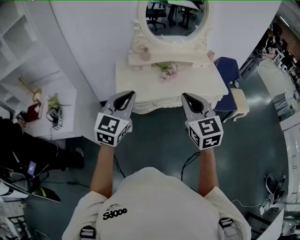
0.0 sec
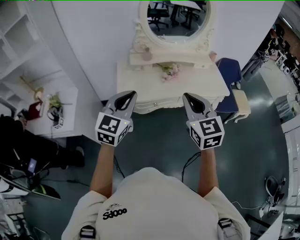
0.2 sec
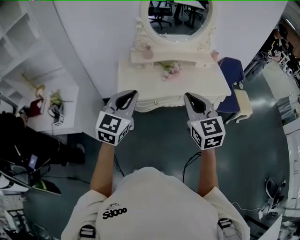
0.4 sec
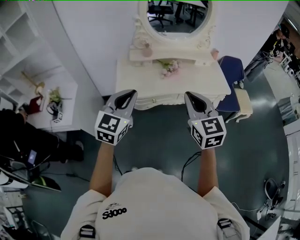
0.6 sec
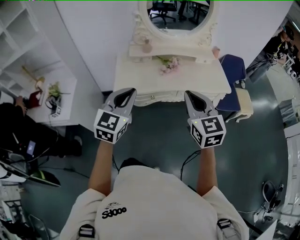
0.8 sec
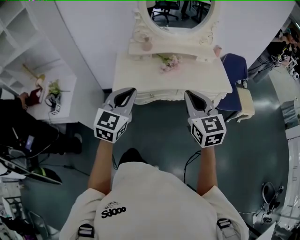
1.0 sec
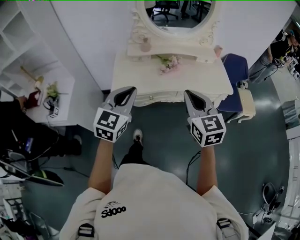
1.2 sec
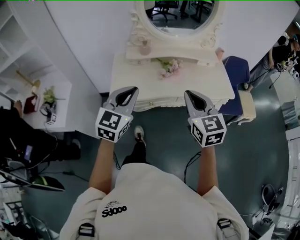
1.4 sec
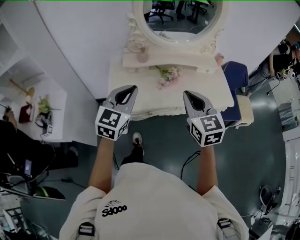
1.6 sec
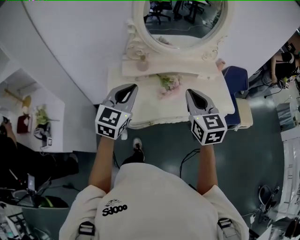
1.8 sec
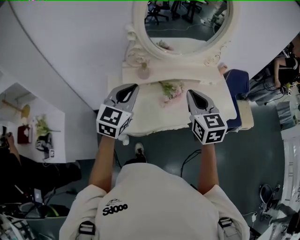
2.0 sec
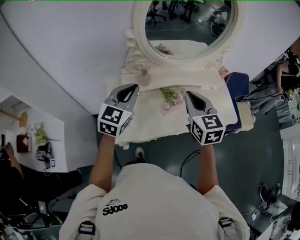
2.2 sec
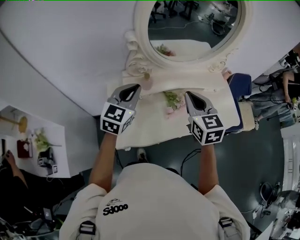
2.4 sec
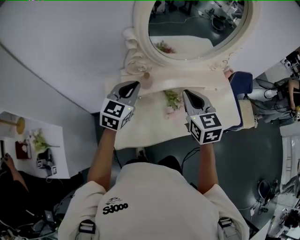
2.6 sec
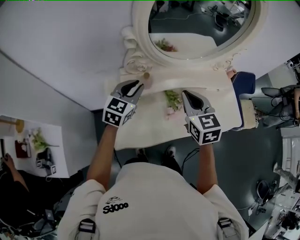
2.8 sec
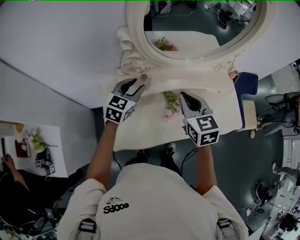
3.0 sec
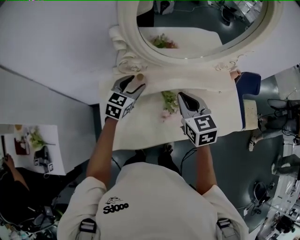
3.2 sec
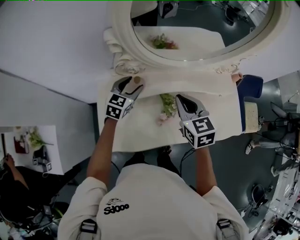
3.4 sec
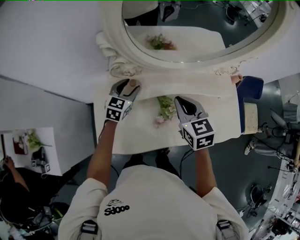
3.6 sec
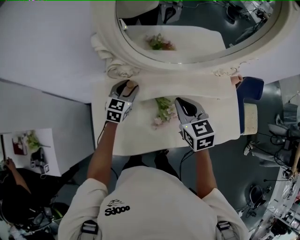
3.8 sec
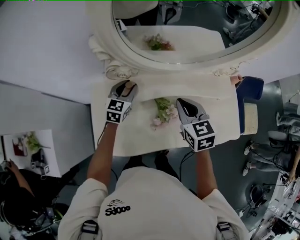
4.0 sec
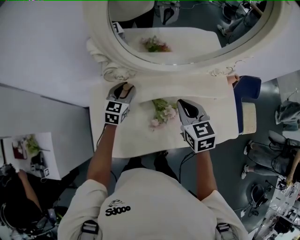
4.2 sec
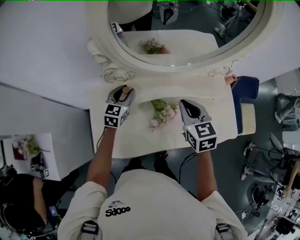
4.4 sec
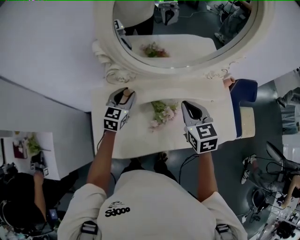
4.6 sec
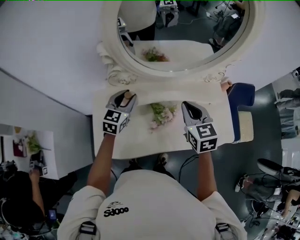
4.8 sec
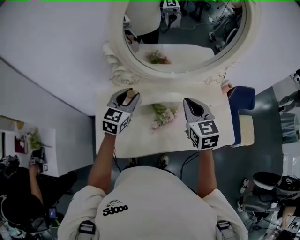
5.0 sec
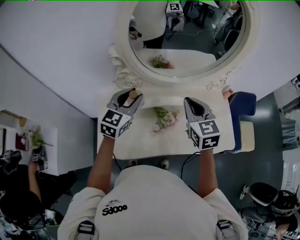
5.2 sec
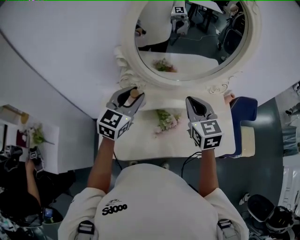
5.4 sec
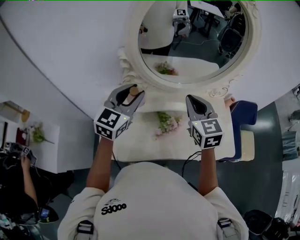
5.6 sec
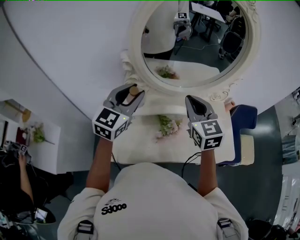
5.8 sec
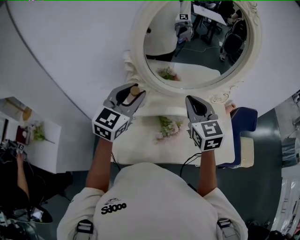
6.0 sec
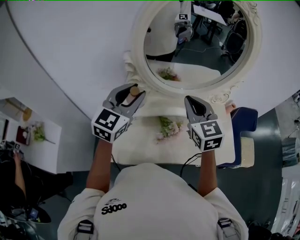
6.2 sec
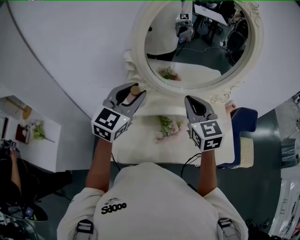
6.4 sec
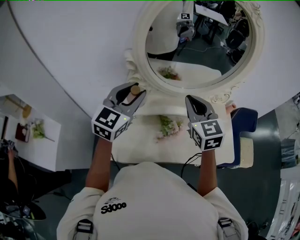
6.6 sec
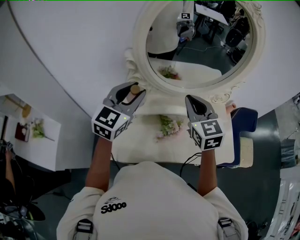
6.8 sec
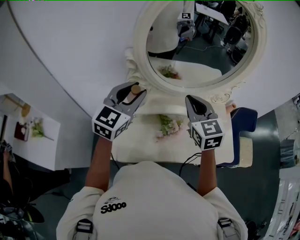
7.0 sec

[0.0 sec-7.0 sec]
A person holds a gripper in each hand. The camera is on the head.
0.0 sec to 1.4 sec: Both grippers travel together forward and to the right, some 10 cm.
1.4 sec to 2.8 sec: The grippers both shift forward by some 35 cm.
2.8 sec to 4.2 sec: The left gripper travels downward and forward by roughly 15 cm, and opens, then closes once more, while the right gripper is displaced to the right, forward and downward by about 15 cm.
4.2 sec to 5.6 sec: The left gripper moves upward and backward, approximately 25 cm, and swivels some 20 degrees, while the right gripper moves upward, some 15 cm.
5.6 sec to 7.0 sec: The grippers move only a little.

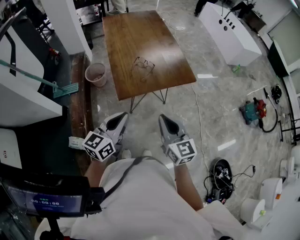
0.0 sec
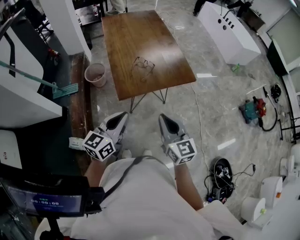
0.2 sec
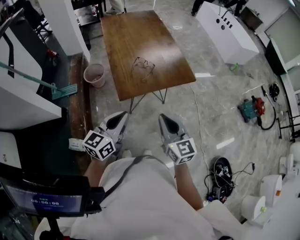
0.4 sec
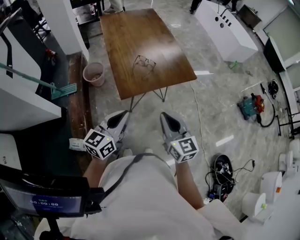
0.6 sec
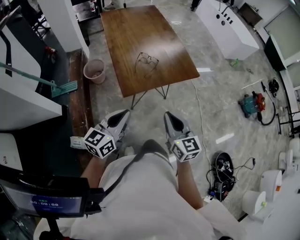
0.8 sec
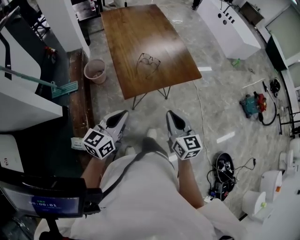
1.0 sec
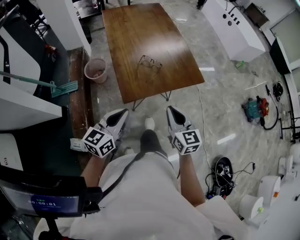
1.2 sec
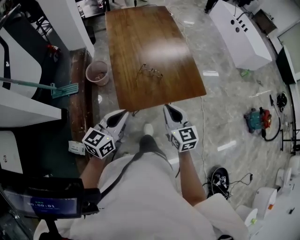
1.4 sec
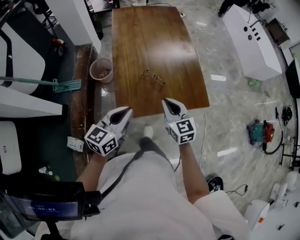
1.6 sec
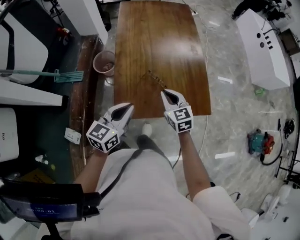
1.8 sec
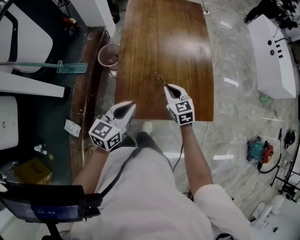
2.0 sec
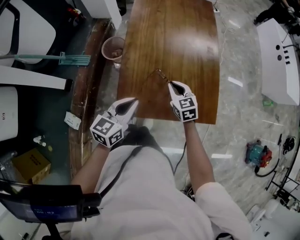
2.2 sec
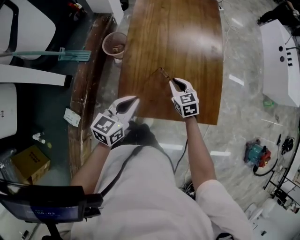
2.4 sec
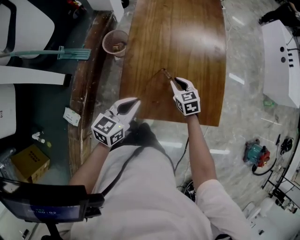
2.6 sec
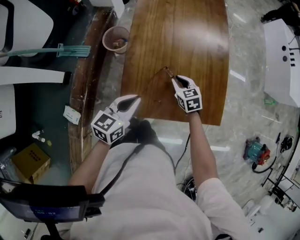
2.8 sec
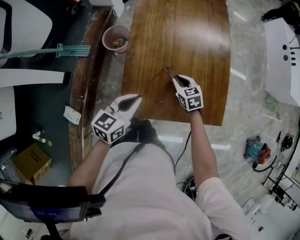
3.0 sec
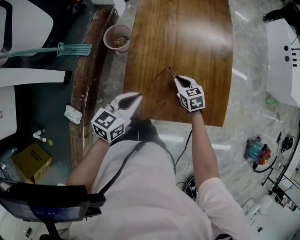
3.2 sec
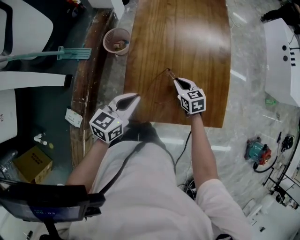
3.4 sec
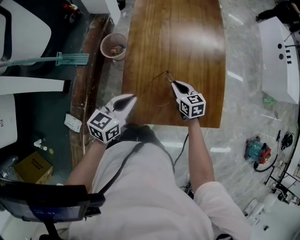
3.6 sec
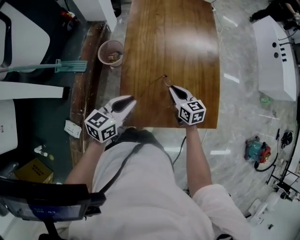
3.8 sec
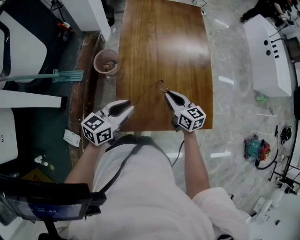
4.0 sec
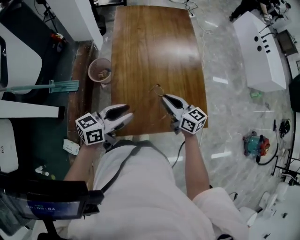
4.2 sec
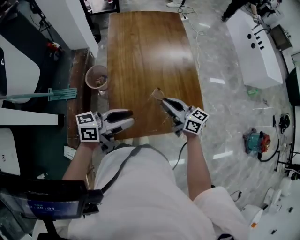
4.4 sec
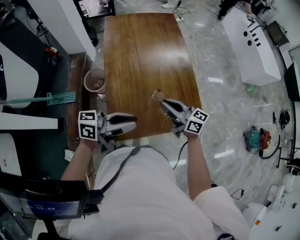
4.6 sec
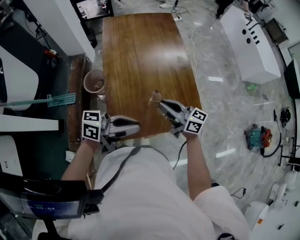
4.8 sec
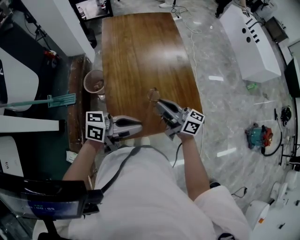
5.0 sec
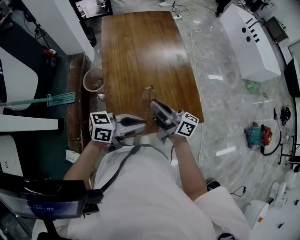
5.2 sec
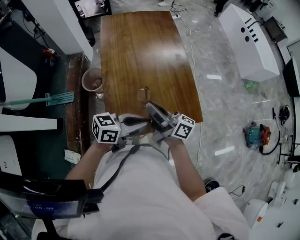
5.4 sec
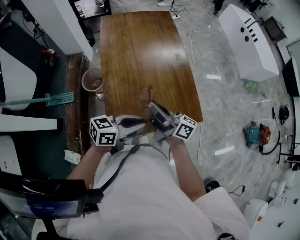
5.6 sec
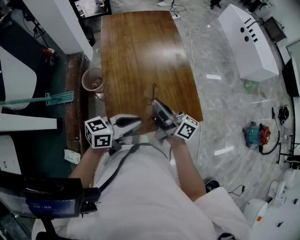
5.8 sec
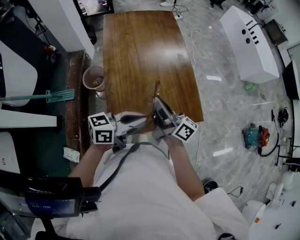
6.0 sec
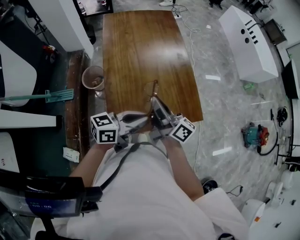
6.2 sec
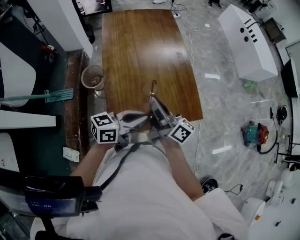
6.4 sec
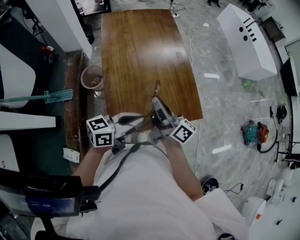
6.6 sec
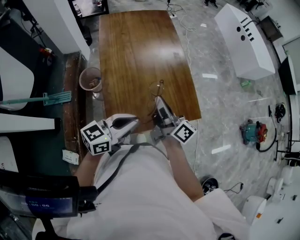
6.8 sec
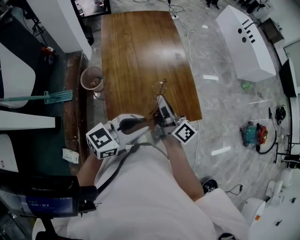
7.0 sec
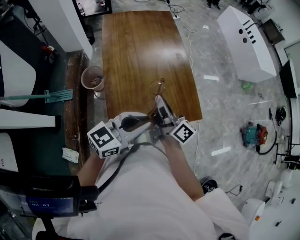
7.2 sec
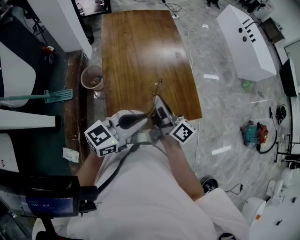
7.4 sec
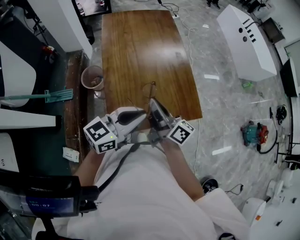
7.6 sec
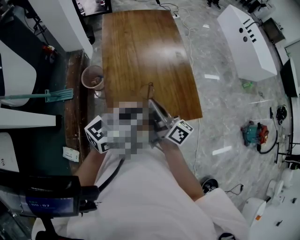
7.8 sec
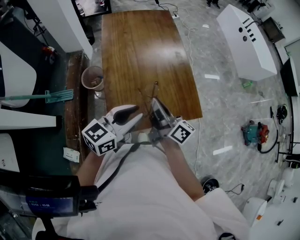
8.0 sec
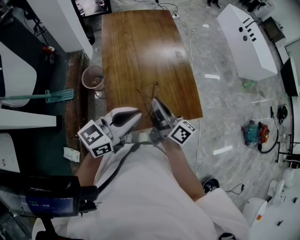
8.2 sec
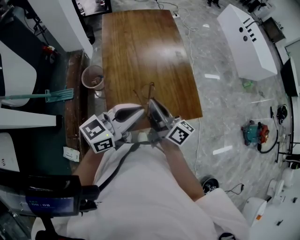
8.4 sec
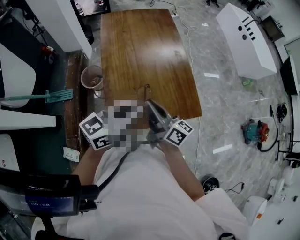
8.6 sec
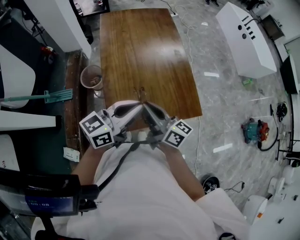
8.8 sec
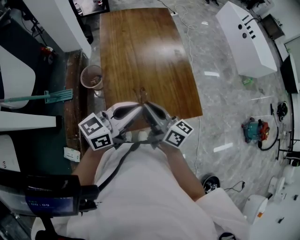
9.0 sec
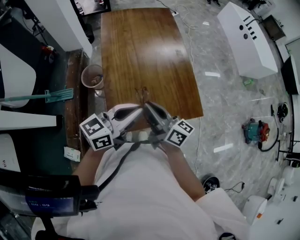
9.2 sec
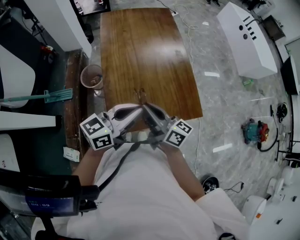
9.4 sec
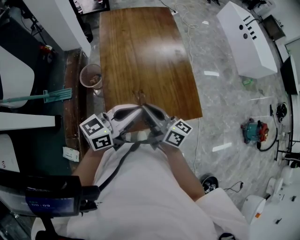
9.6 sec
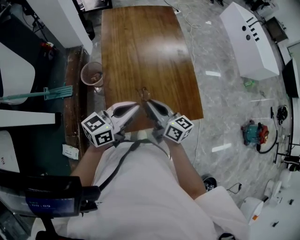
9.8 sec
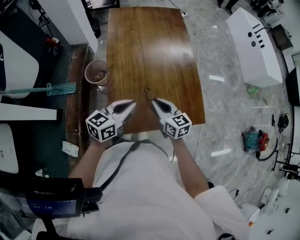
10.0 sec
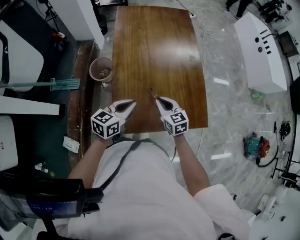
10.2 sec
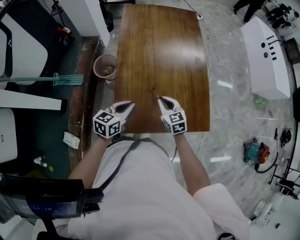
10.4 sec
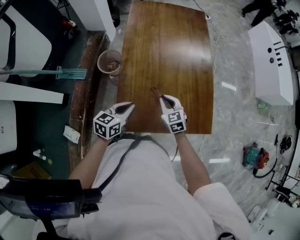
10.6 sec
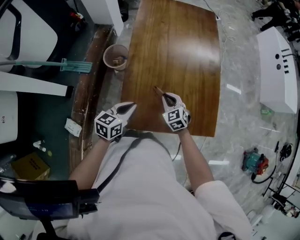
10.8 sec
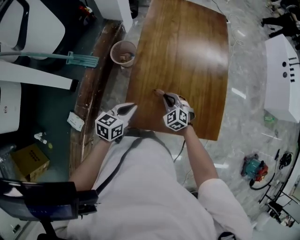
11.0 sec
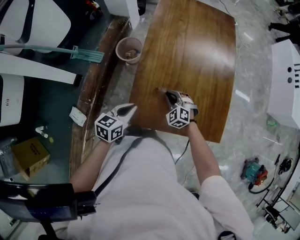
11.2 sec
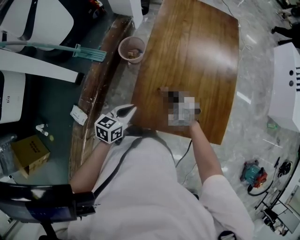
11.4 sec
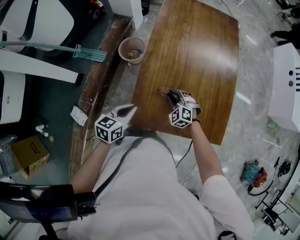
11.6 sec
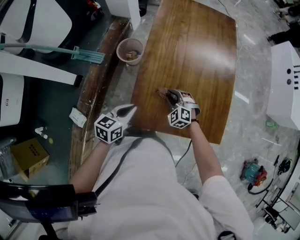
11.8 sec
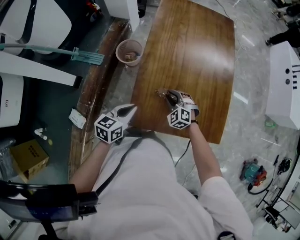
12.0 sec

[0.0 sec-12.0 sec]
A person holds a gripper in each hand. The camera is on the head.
0.0 sec to 1.6 sec: The grippers both shift forward by about 25 cm.
1.6 sec to 3.0 sec: The left gripper shifts approximately 15 cm forward and downward. The right gripper goes about 30 cm forward and downward, and rotates some 30 degrees.
3.0 sec to 4.4 sec: The right gripper travels upward by approximately 20 cm, and angles its fingers upward, by about 40 degrees; the left gripper shifts about 15 cm upward, changes its angle by about 40 degrees, and opens up.
4.4 sec to 6.0 sec: The left gripper shifts by roughly 5 cm, and closes up, while the right gripper travels upward by some 5 cm, and rotates about 30 degrees.
6.0 sec to 7.6 sec: The left gripper rotates some 20 degrees.
7.6 sec to 9.0 sec: The left gripper opens, then closes once more.
9.0 sec to 10.4 sec: The right gripper moves downward and forward, about 20 cm, and tilts its fingers some 40 degrees downward; the left gripper moves downward and to the left, some 20 cm, and rotates approximately 30 degrees.
10.4 sec to 12.0 sec: The right gripper is displaced downward and to the left by about 10 cm, and twists roughly 50 degrees counterclockwise, seen from behind, while the left gripper moves to the left, roughly 5 cm.

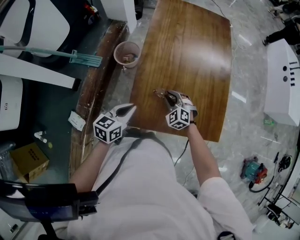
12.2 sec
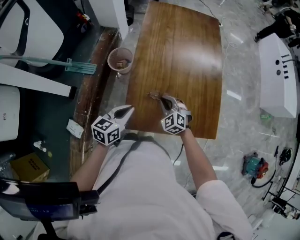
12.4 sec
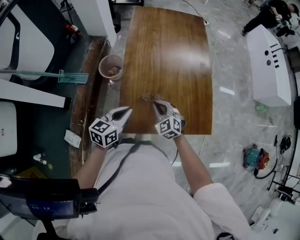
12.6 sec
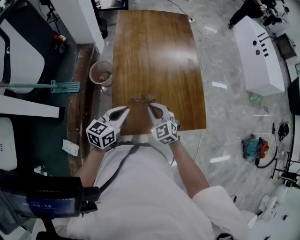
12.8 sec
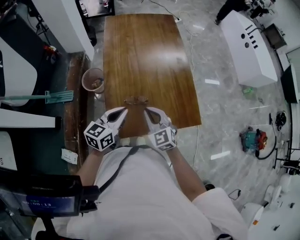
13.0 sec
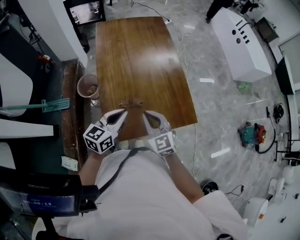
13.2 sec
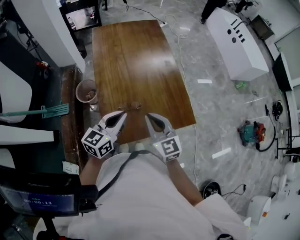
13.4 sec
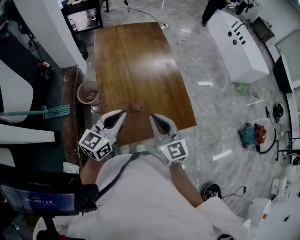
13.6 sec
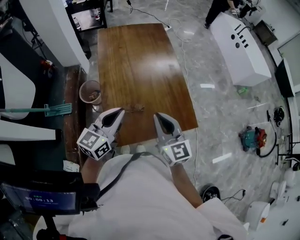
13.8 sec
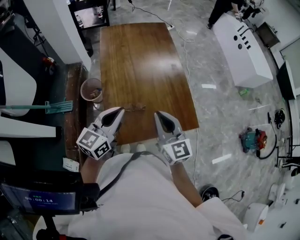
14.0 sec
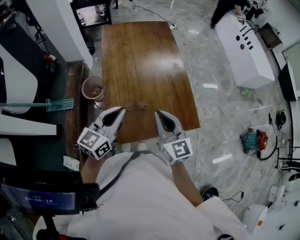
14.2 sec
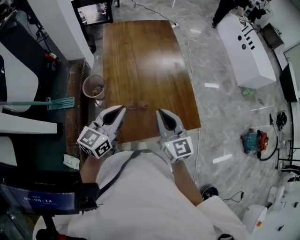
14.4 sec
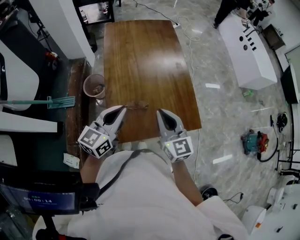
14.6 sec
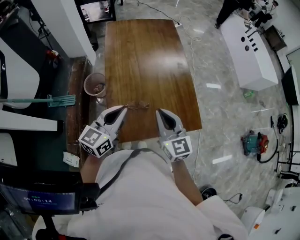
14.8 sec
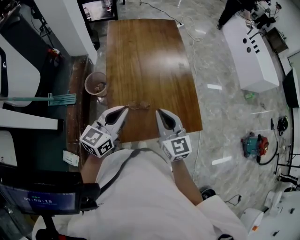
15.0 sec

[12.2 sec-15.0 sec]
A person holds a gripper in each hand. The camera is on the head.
12.2 sec to 13.6 sec: The right gripper heads upward, covering approximately 25 cm, and angles its fingers upward, by about 40 degrees; the left gripper heads upward and to the right, covering approximately 20 cm, and turns by about 30 degrees.
13.6 sec to 15.0 sec: There are only small adjustments of the grippers.

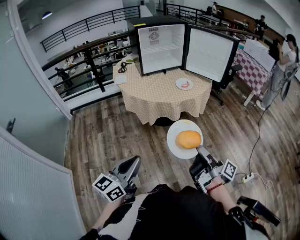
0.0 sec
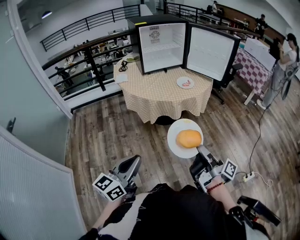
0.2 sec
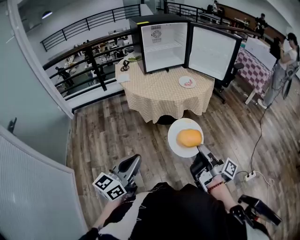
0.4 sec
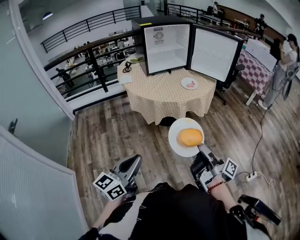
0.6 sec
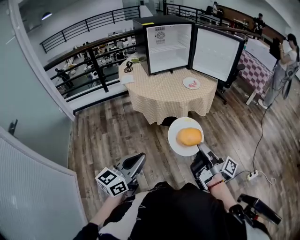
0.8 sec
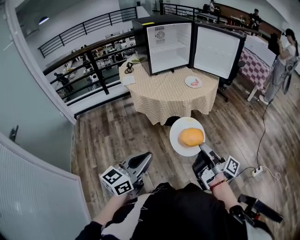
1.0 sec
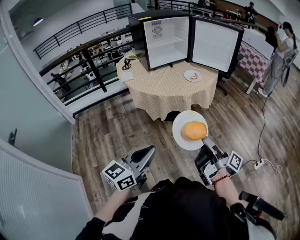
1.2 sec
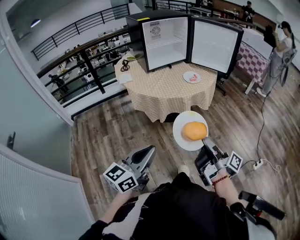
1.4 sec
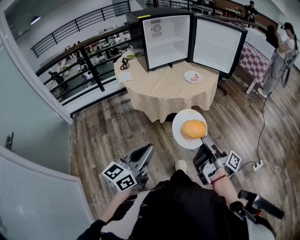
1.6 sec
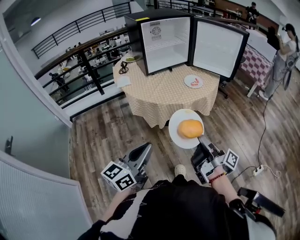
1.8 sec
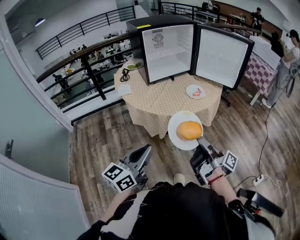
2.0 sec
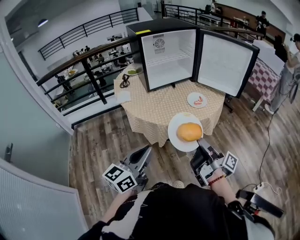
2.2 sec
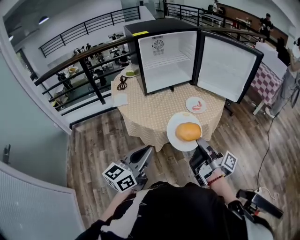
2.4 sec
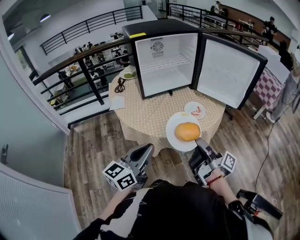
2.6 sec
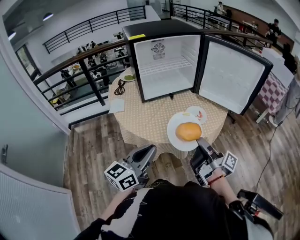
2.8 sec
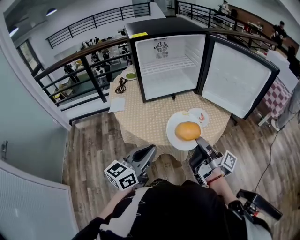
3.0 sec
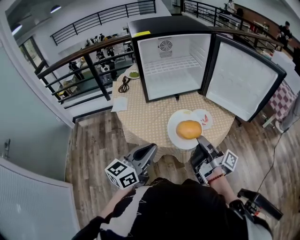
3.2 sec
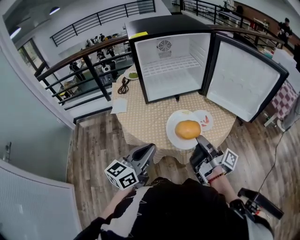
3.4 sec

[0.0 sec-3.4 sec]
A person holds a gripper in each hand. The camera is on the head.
0.0 sec to 1.6 sec: The right gripper heads to the left, covering approximately 10 cm. The left gripper goes about 10 cm forward and to the left.
1.6 sec to 3.4 sec: The grippers both shift forward by about 40 cm.
